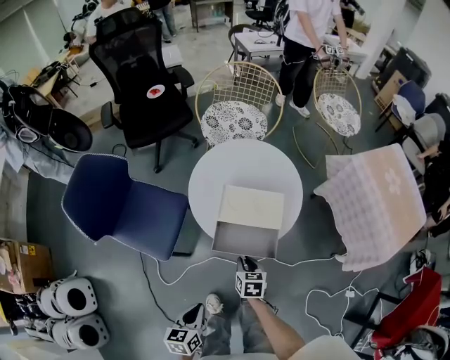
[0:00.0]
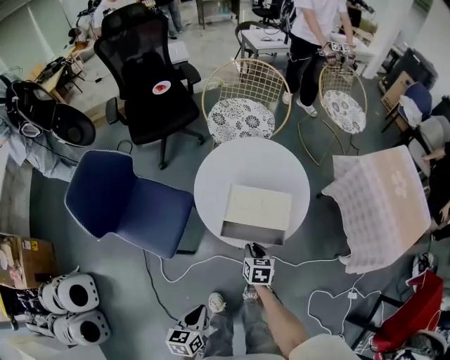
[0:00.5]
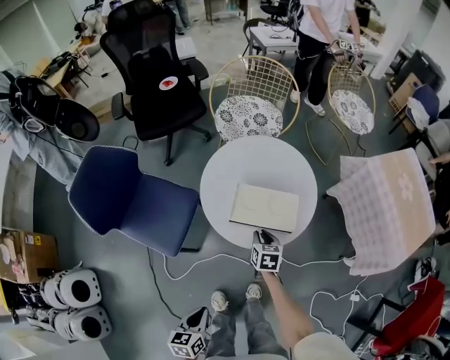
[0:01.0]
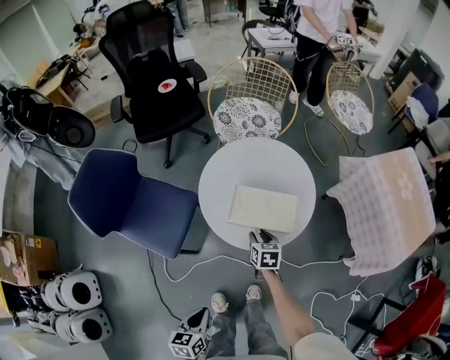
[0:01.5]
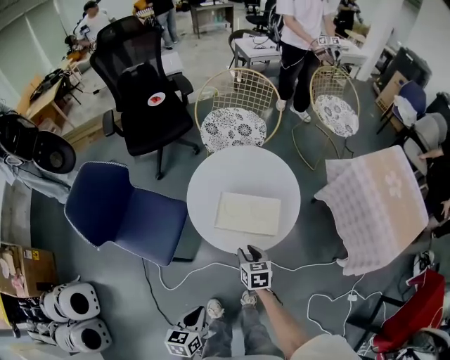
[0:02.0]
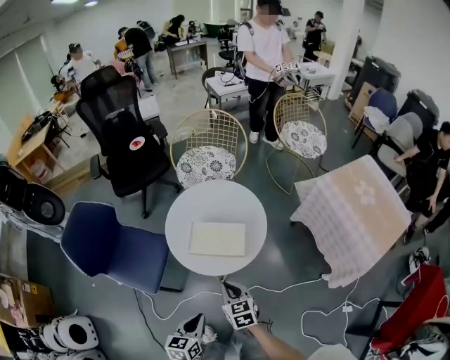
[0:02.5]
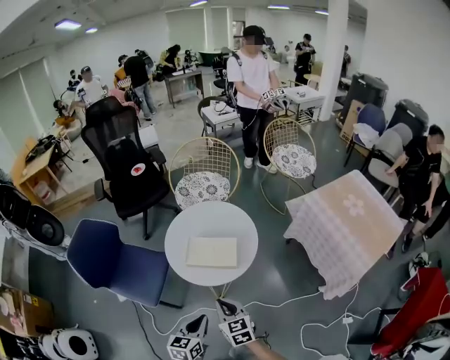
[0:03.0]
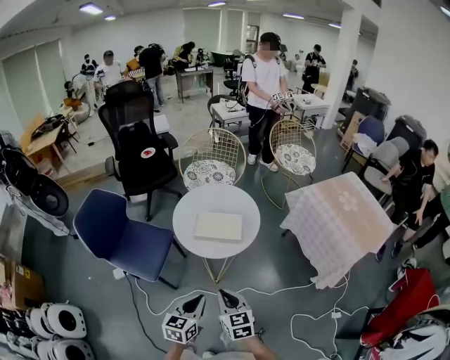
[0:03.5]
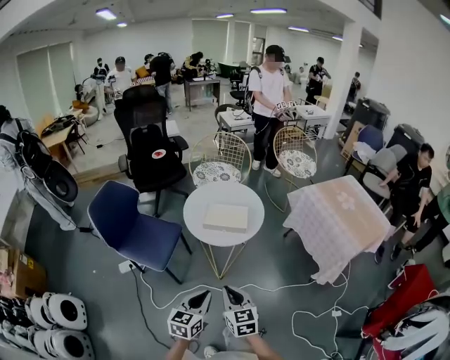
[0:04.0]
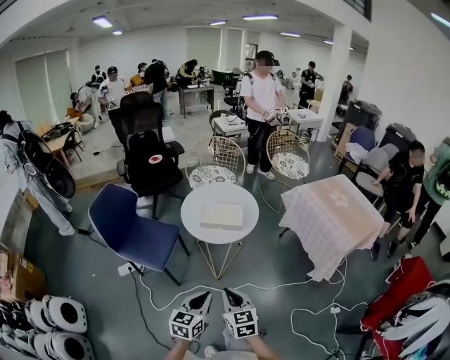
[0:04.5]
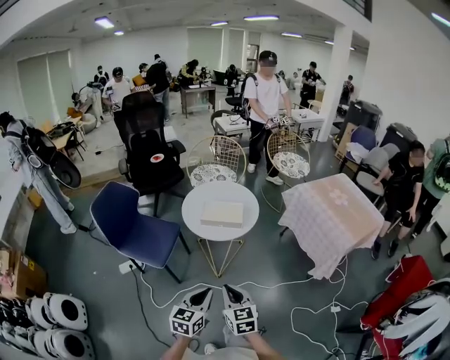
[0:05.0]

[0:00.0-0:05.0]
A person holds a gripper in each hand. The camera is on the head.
0:00.0 to 0:02.5: The left gripper shifts about 10 cm to the right and forward, while the right gripper shifts approximately 10 cm upward, moves approximately 10 cm forward and comes back, and rotates approximately 20 degrees.
0:02.5 to 0:05.0: The two grippers go about 30 cm backward and upward. The left gripper changes its angle by roughly 20 degrees.

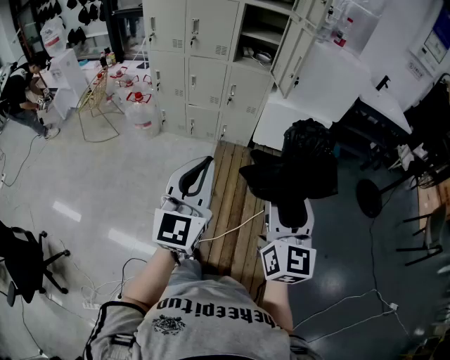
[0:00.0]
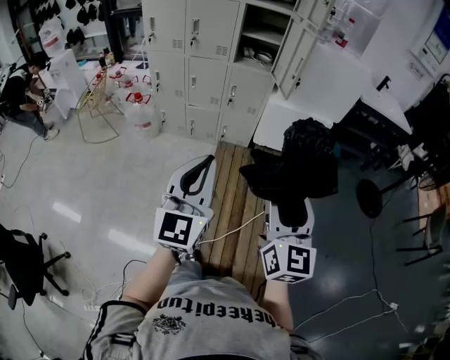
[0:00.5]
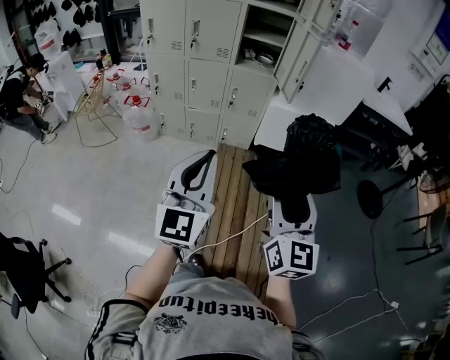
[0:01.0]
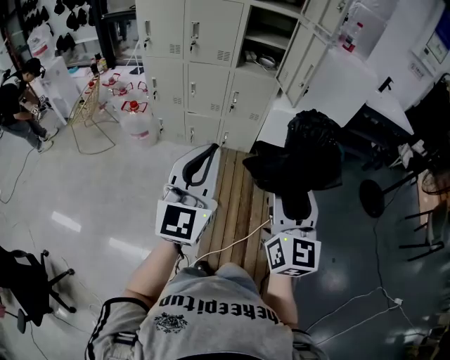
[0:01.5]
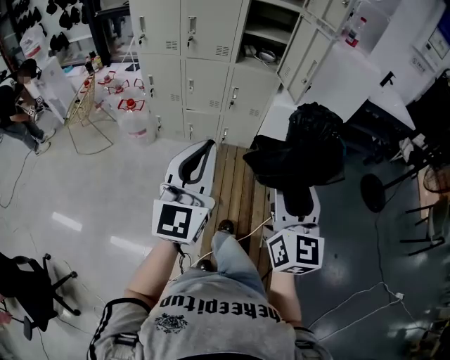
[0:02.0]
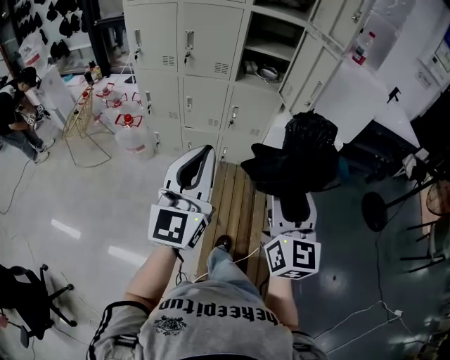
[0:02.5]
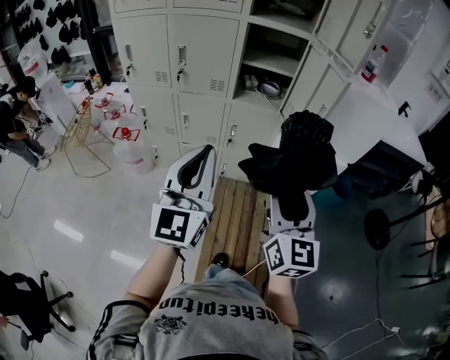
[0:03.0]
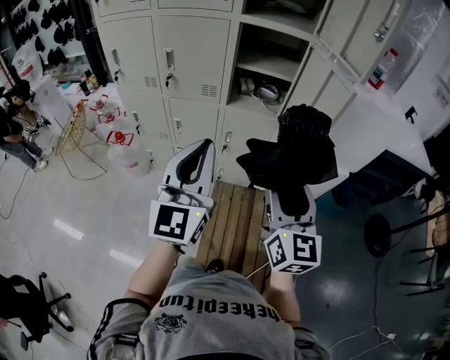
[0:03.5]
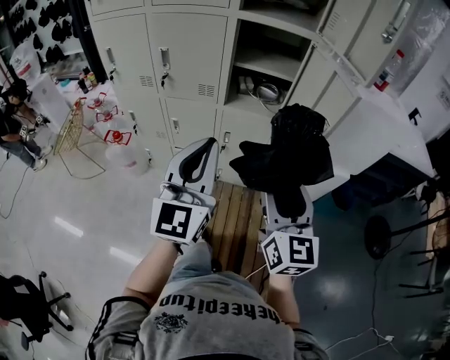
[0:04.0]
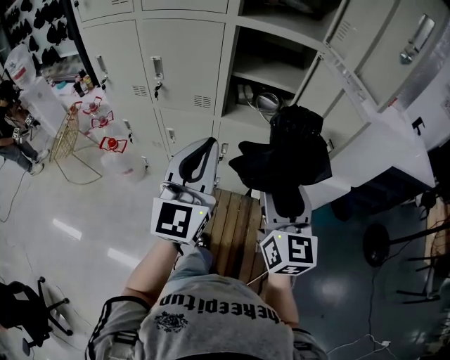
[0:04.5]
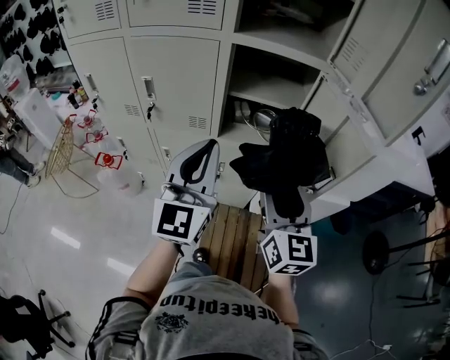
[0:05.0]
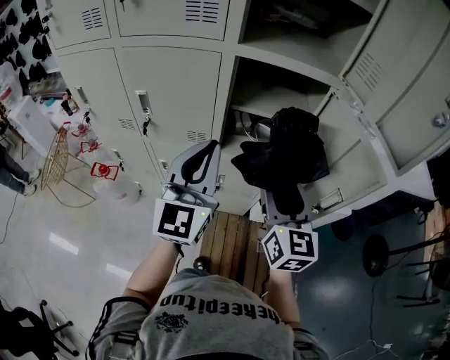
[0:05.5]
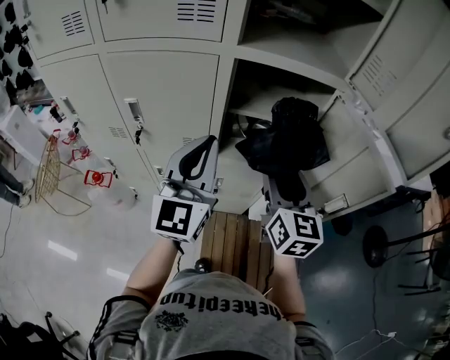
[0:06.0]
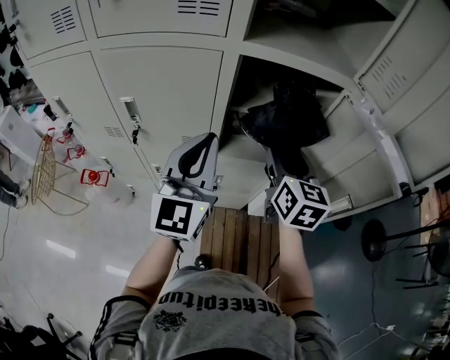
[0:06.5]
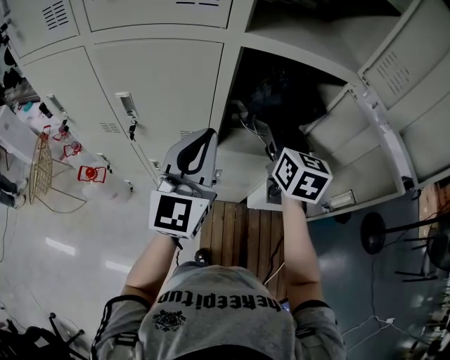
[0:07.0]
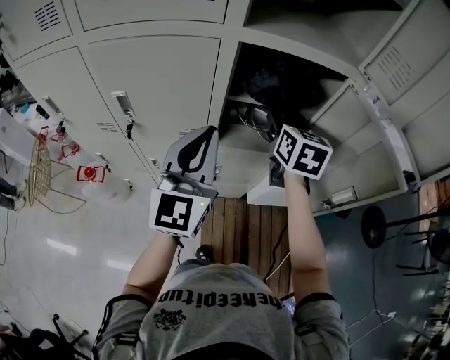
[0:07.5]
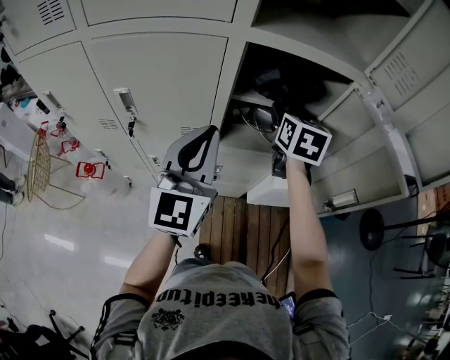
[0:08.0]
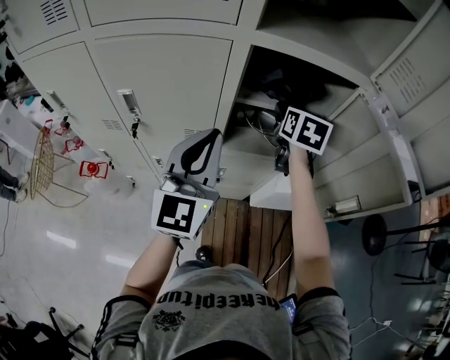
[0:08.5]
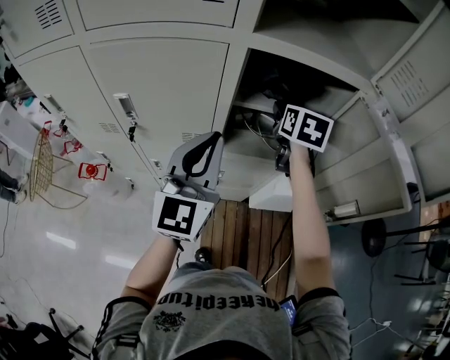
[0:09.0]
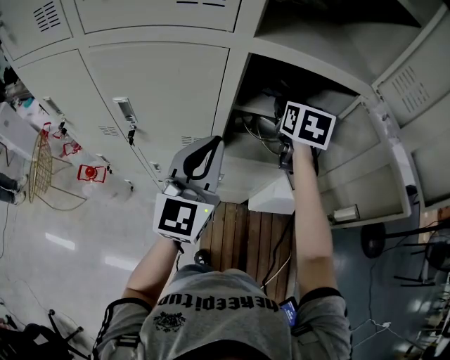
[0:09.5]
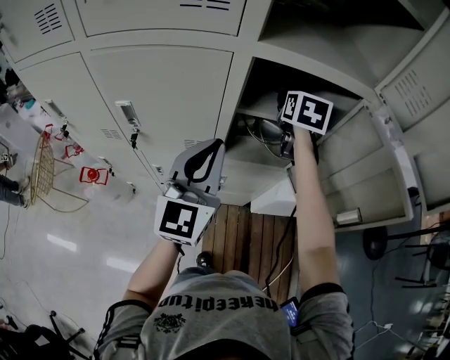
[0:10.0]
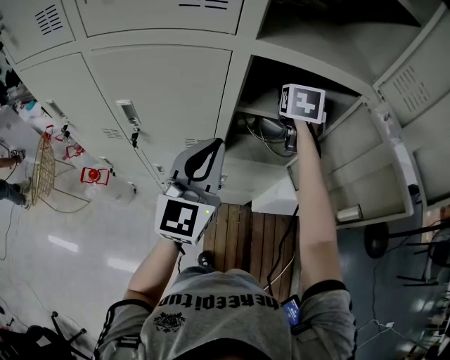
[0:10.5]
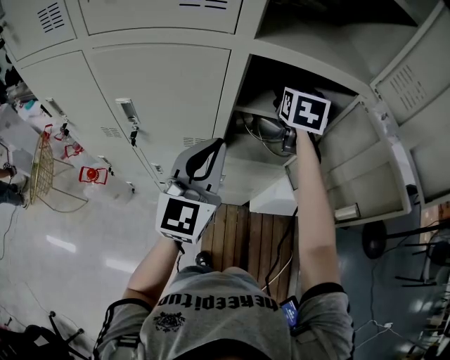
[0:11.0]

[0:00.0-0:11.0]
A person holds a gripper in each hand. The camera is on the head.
0:00.0 to 0:02.0: Both grippers travel together forward and to the left, about 15 cm.
0:02.0 to 0:03.5: Both grippers move forward, approximately 35 cm.
0:03.5 to 0:05.5: The two grippers go roughly 25 cm forward.
0:05.5 to 0:07.5: The right gripper moves forward, some 20 cm, while the left gripper shifts about 5 cm forward.
0:07.5 to 0:09.0: The right gripper travels forward by roughly 5 cm.
0:09.0 to 0:11.0: The right gripper travels upward by some 5 cm.

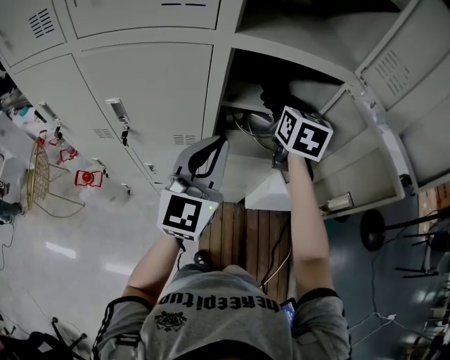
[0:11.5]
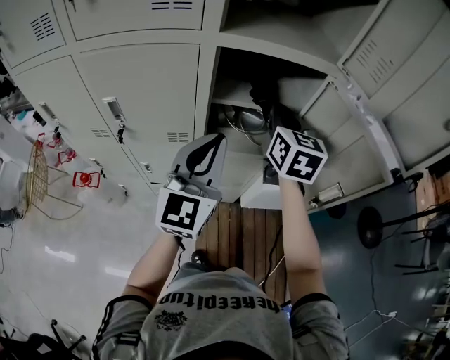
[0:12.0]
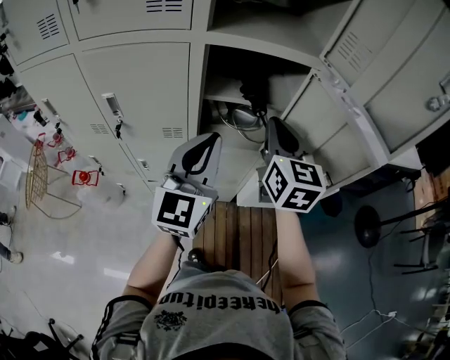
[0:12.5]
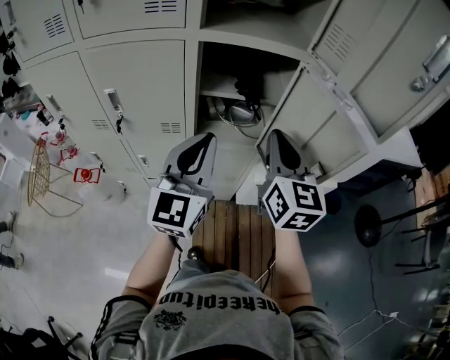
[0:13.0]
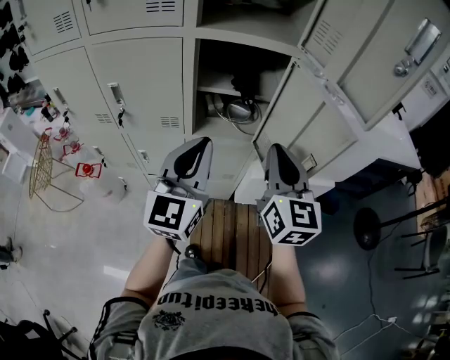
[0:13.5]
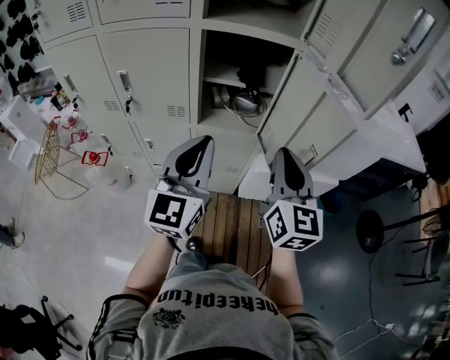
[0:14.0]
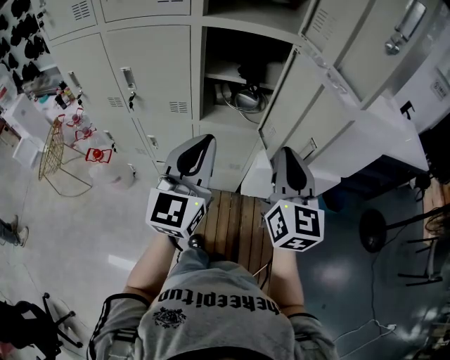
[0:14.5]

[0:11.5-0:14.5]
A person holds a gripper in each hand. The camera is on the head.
0:11.5 to 0:13.0: The right gripper heads backward, covering roughly 20 cm; the left gripper travels backward and to the right by roughly 10 cm.
0:13.0 to 0:14.5: The left gripper travels backward by some 10 cm; the right gripper heads backward and to the right, covering roughly 10 cm.

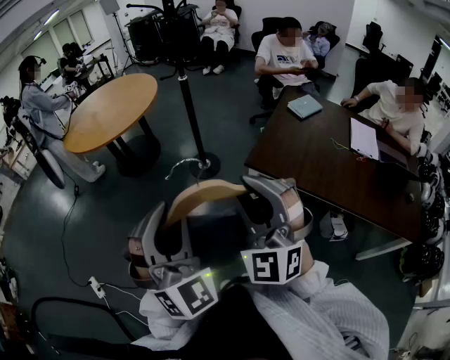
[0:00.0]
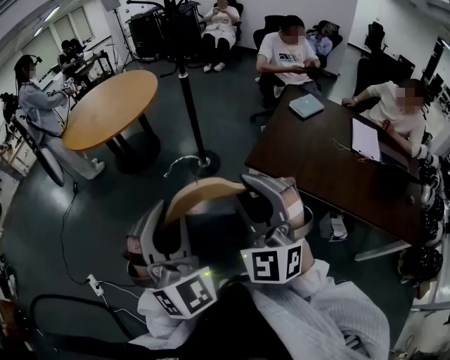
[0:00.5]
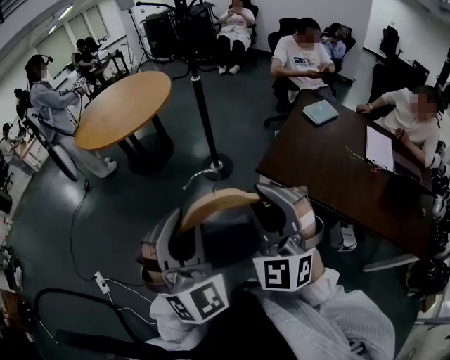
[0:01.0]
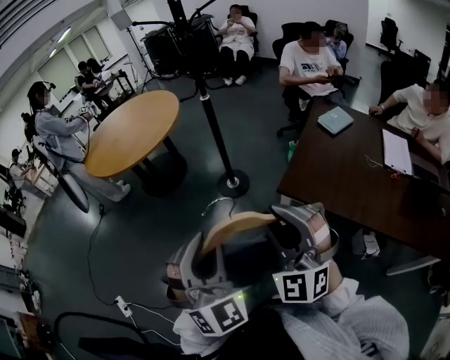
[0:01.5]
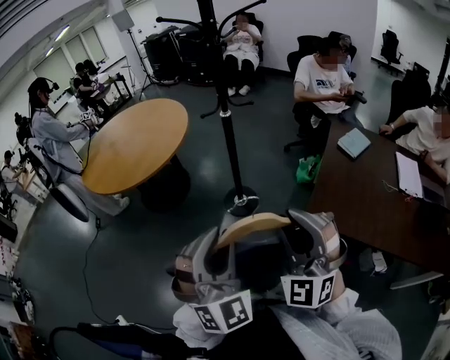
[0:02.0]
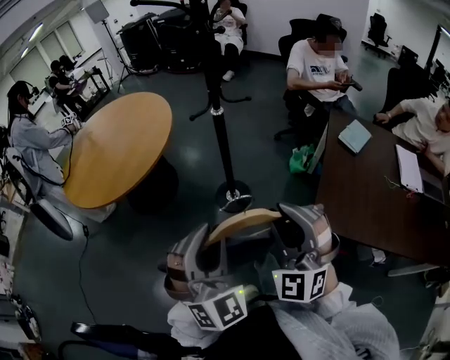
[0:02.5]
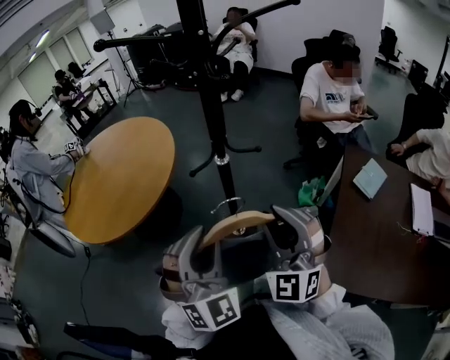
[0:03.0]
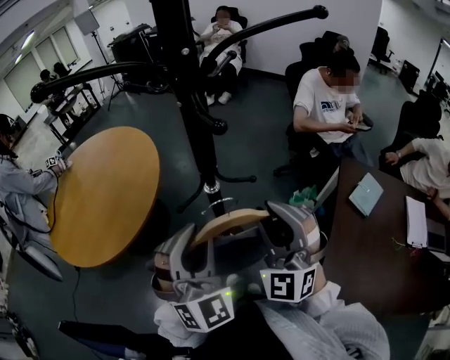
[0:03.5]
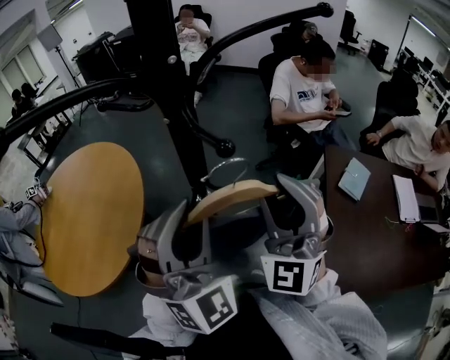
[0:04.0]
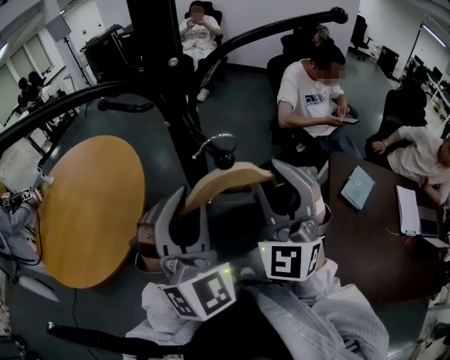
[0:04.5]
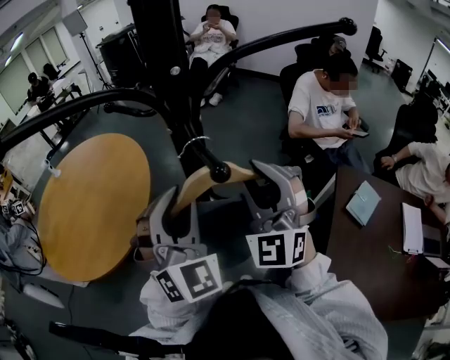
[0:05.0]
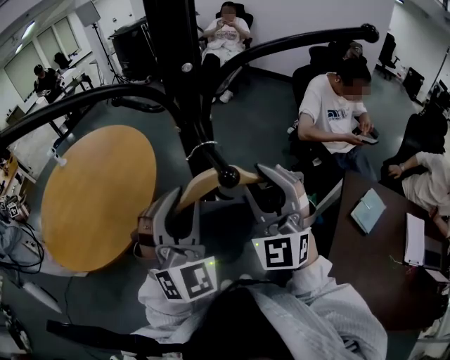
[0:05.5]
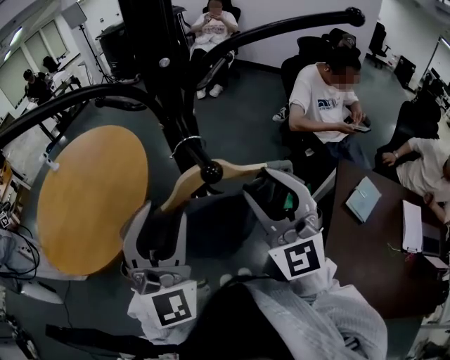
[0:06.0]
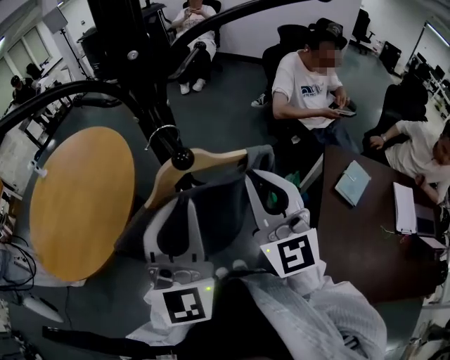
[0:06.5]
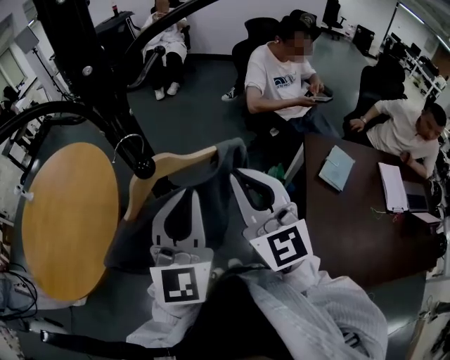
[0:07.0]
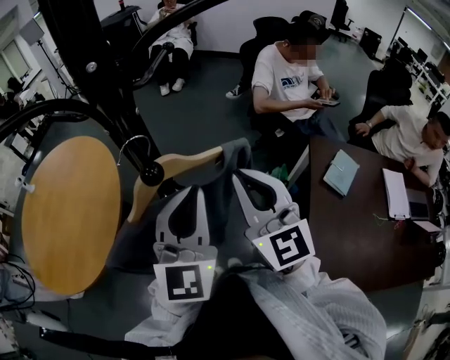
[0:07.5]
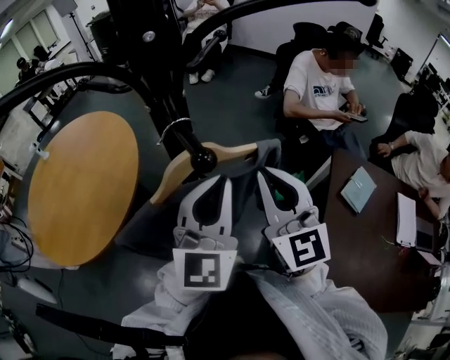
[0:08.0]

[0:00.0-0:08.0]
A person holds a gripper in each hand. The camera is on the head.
0:00.0 to 0:02.0: Both grippers travel together forward, approximately 25 cm.
0:02.0 to 0:04.0: The two grippers travel together, forward, roughly 50 cm.
0:04.0 to 0:06.0: The right gripper travels forward by some 5 cm, and rotates some 30 degrees.
0:06.0 to 0:08.0: The left gripper is displaced to the right and downward by roughly 10 cm, swivels some 40 degrees, and closes its fingers. The right gripper changes its angle by about 30 degrees, and closes its fingers.
